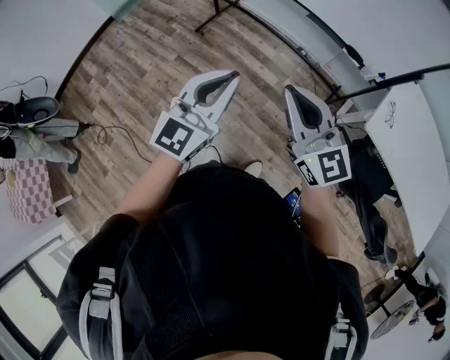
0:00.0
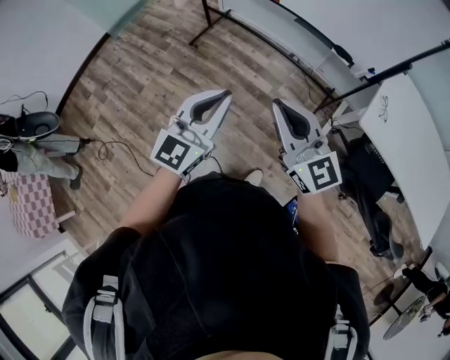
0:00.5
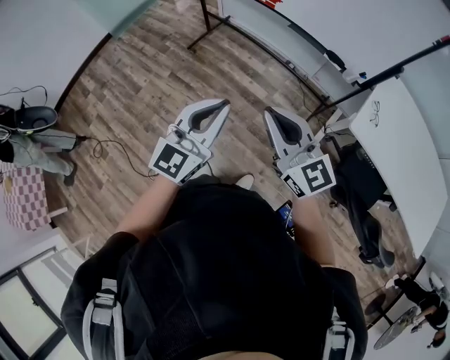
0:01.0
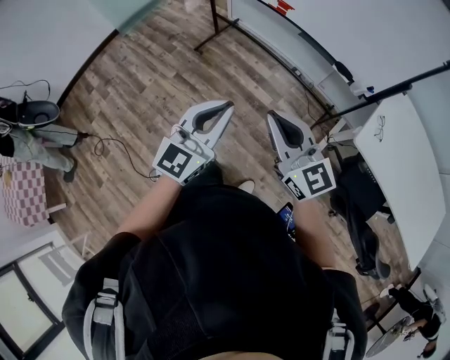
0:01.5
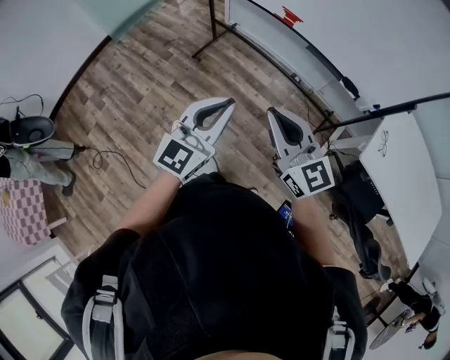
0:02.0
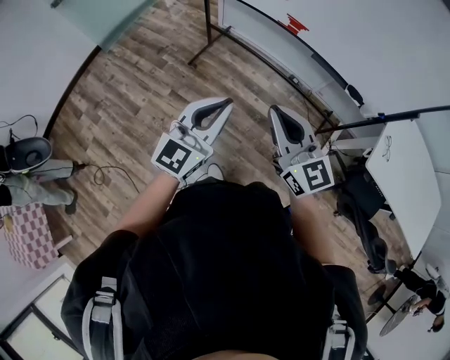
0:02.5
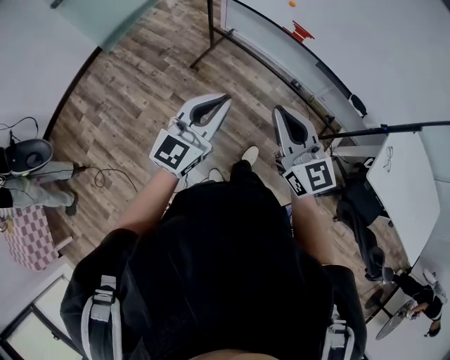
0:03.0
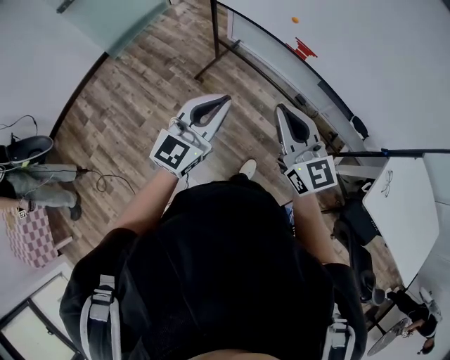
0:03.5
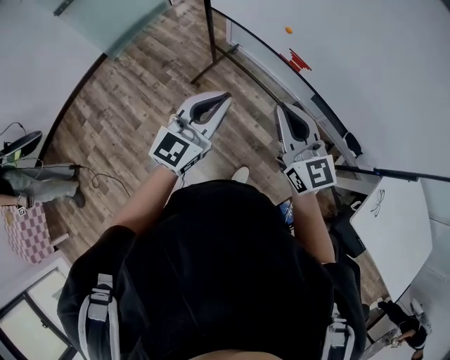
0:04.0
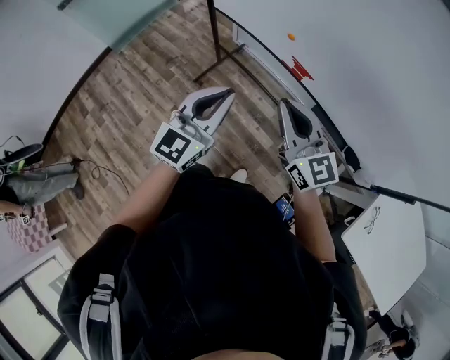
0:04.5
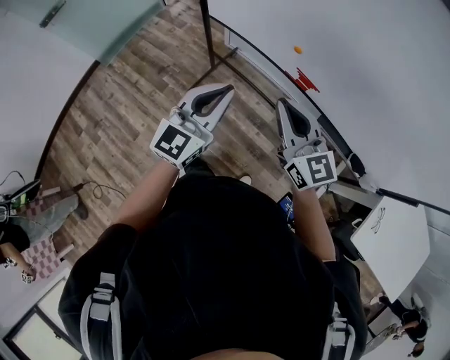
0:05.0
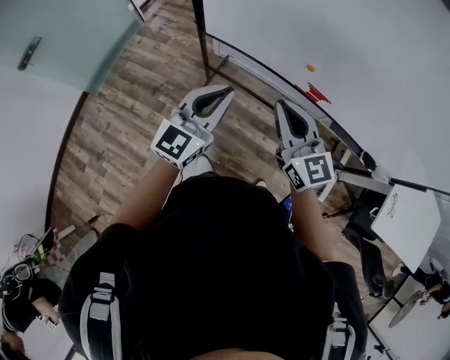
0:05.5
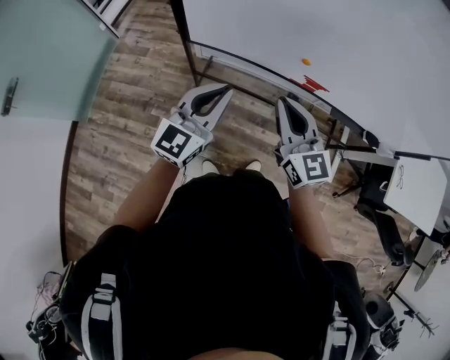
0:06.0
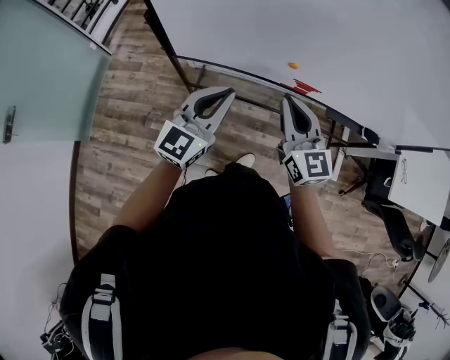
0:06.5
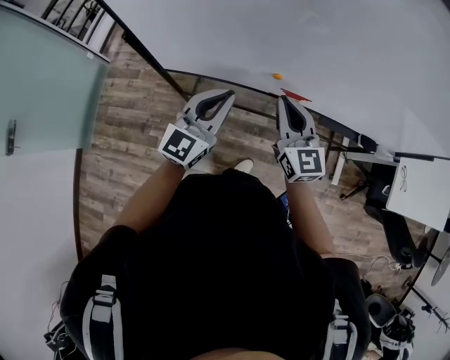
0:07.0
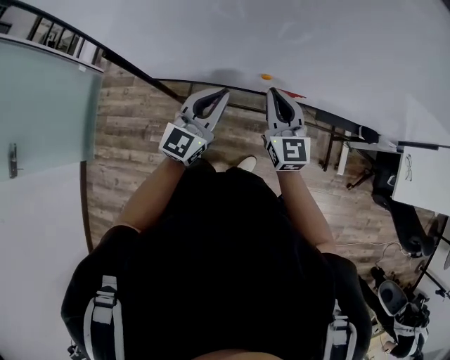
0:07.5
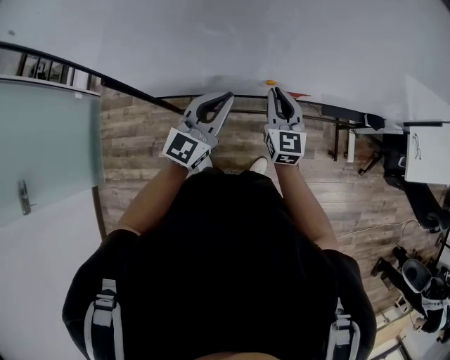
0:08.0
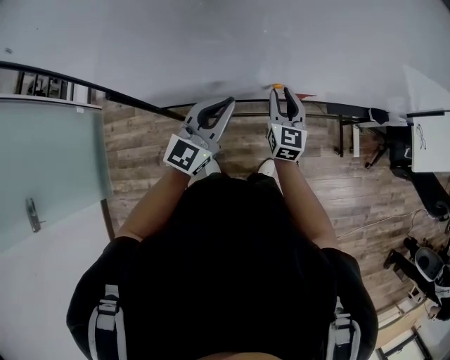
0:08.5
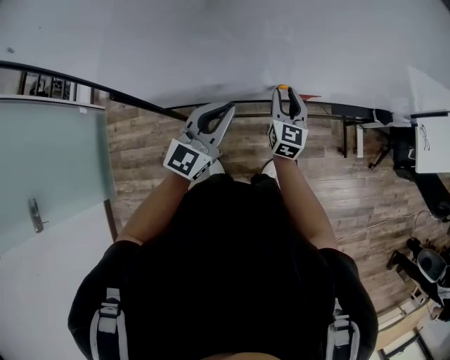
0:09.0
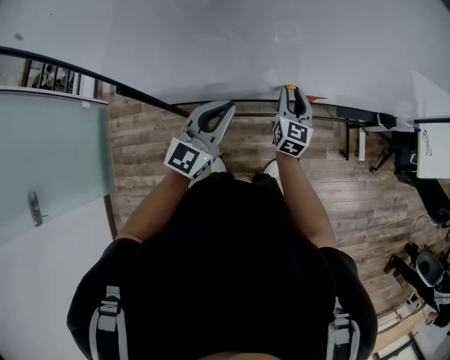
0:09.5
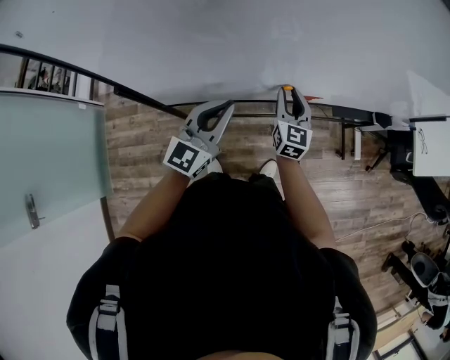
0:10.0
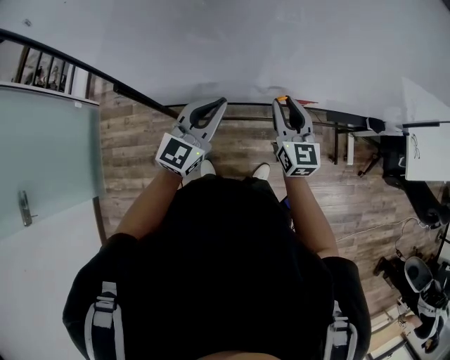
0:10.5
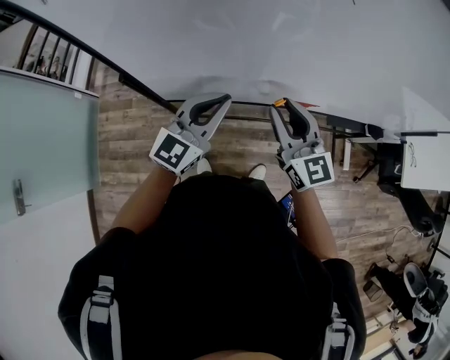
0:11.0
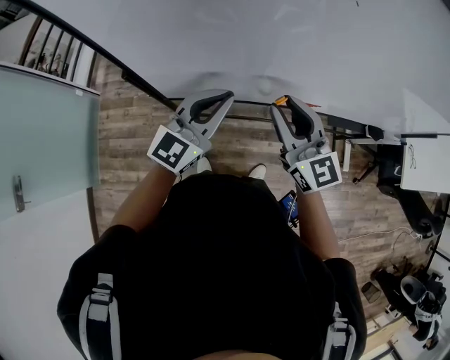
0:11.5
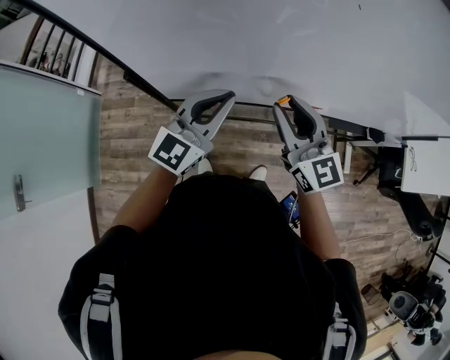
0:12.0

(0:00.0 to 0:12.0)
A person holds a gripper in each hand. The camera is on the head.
0:00.0 - 0:02.0: Both grippers travel together forward and to the left, about 10 cm.
0:02.0 - 0:04.0: Both grippers move forward, some 30 cm.
0:04.0 - 0:06.0: The right gripper ends up some 30 cm from where it was, and changes its angle by approximately 30 degrees; the left gripper shifts by some 35 cm, and turns by approximately 20 degrees.
0:06.0 - 0:08.0: The right gripper goes approximately 25 cm forward, downward and to the right, and changes its angle by about 30 degrees; the left gripper travels forward and to the right by some 20 cm.
0:08.0 - 0:10.0: The left gripper changes place by roughly 5 cm.
0:10.0 - 0:12.0: The right gripper is displaced upward and backward by roughly 20 cm, and changes its angle by about 40 degrees. The left gripper goes approximately 5 cm upward.

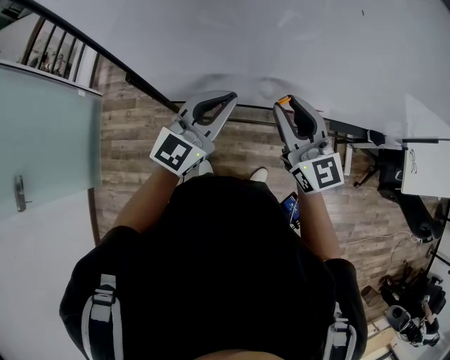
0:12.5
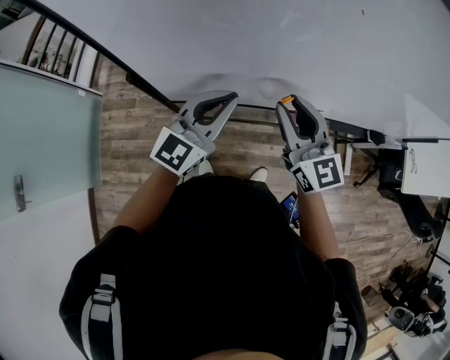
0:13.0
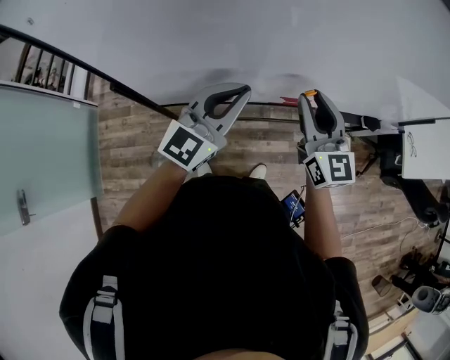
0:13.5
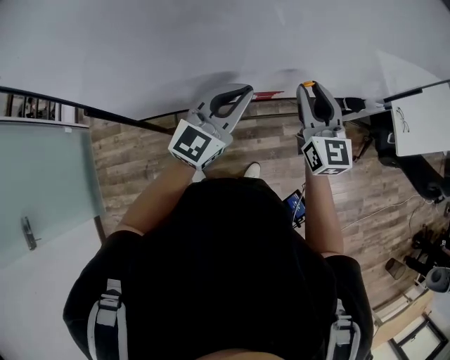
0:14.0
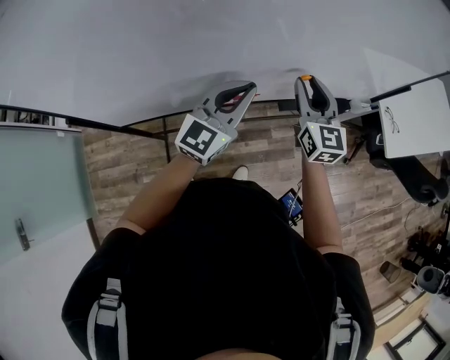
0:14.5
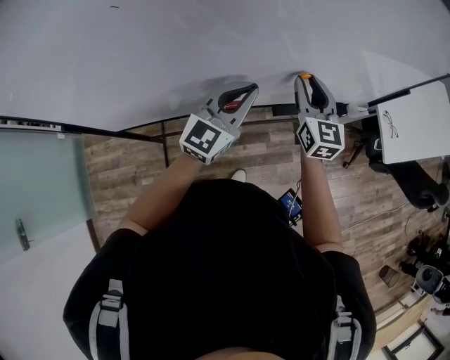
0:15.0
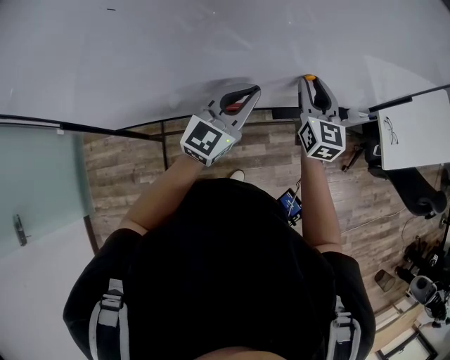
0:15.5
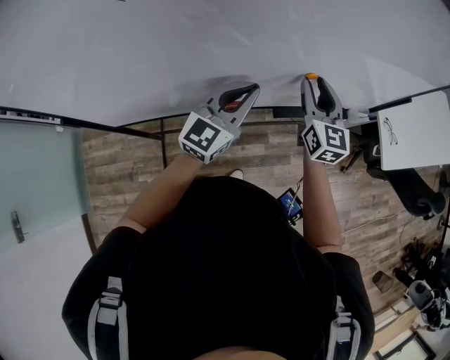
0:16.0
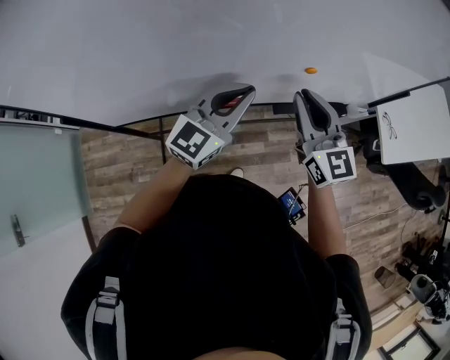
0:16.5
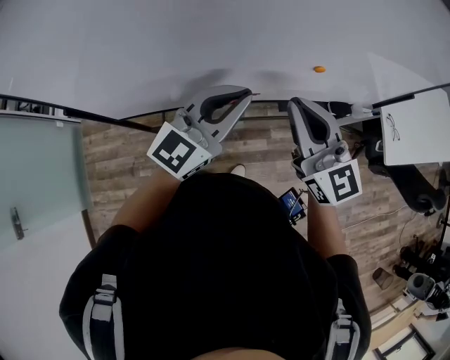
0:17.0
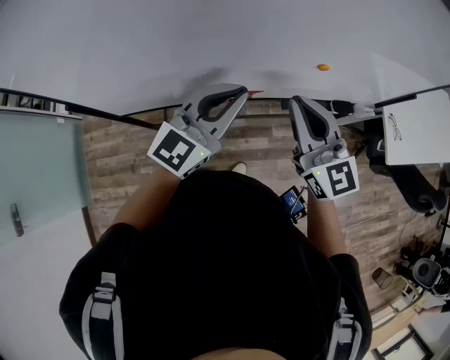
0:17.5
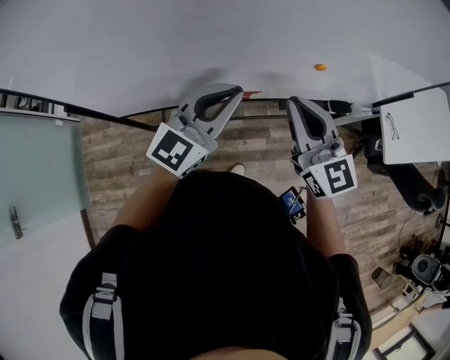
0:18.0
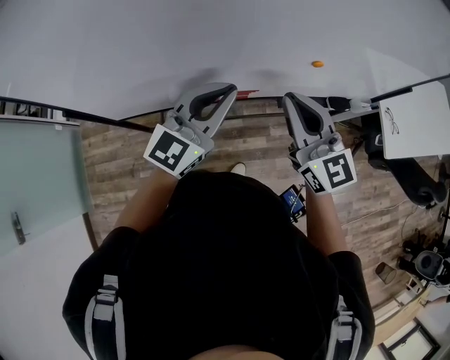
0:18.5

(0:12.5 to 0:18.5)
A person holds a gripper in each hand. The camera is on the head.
0:12.5 - 0:14.5: Both grippers travel together to the right, about 30 cm. The right gripper changes its angle by roughly 30 degrees.
0:14.5 - 0:16.5: The right gripper ends up about 5 cm from where it was.
0:16.5 - 0:18.5: The two grippers go approximately 5 cm to the left.

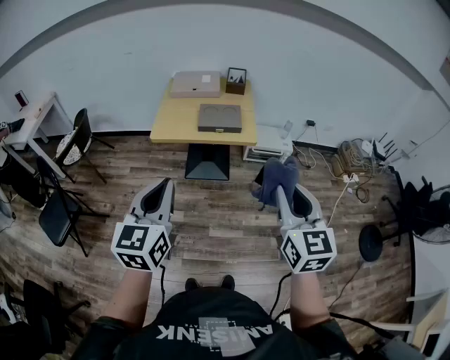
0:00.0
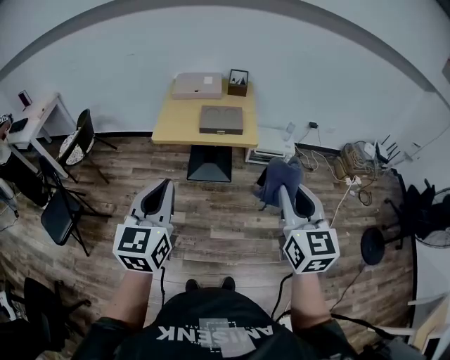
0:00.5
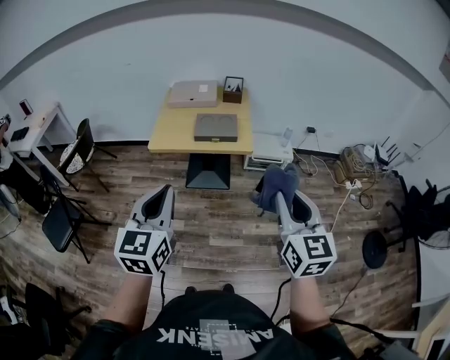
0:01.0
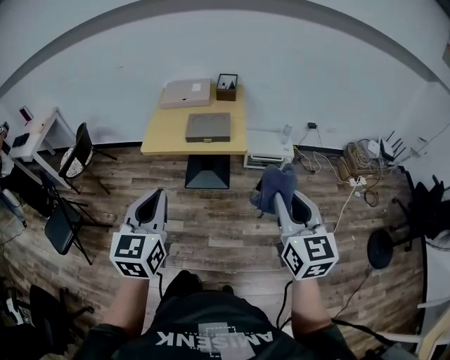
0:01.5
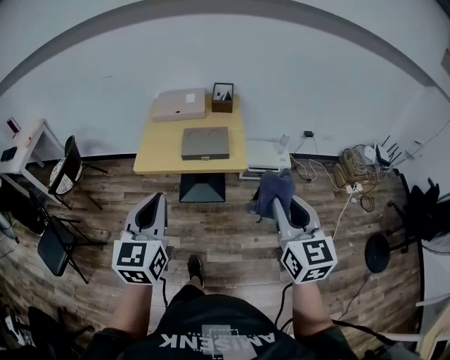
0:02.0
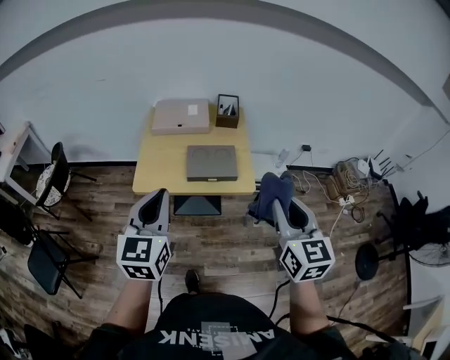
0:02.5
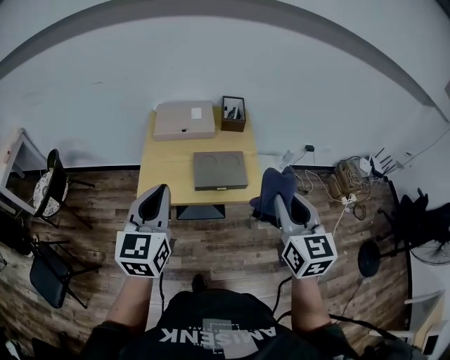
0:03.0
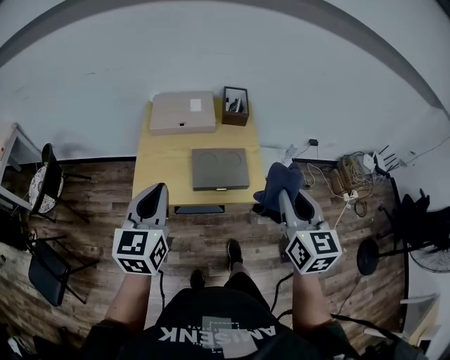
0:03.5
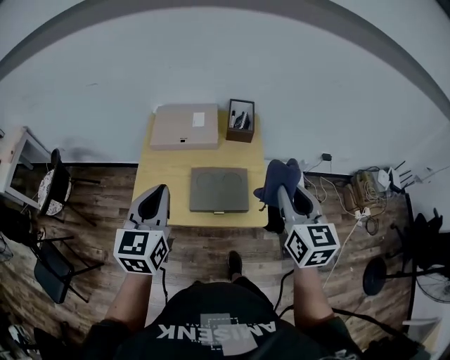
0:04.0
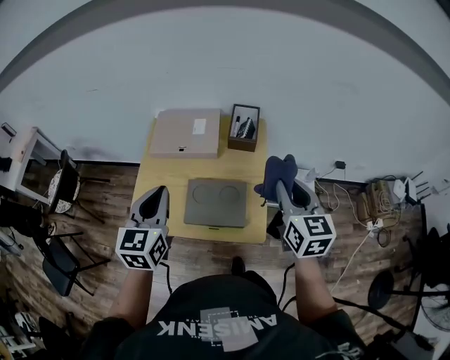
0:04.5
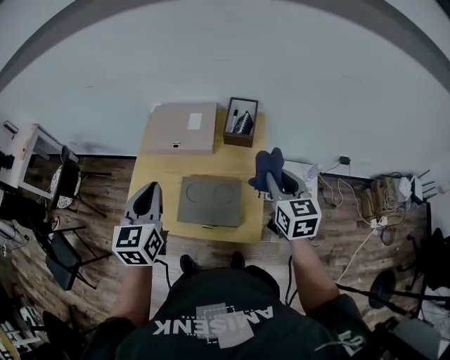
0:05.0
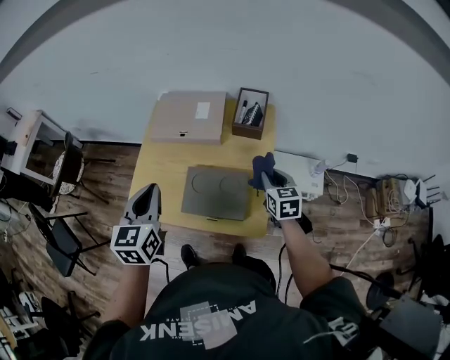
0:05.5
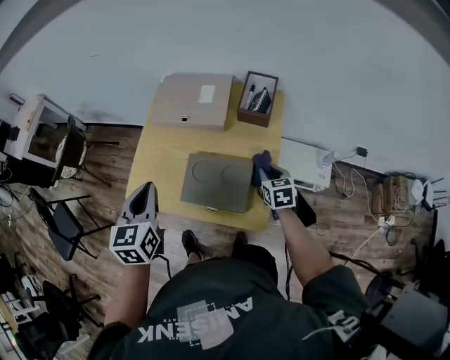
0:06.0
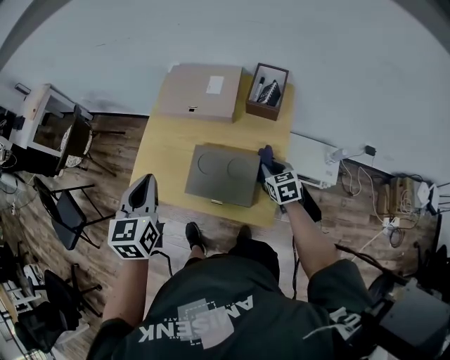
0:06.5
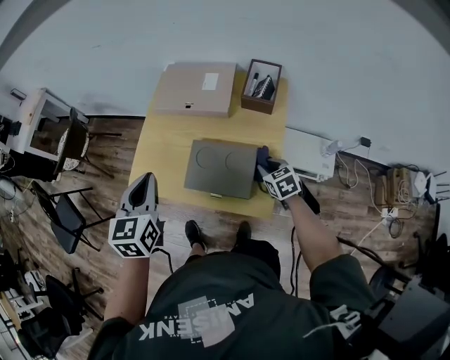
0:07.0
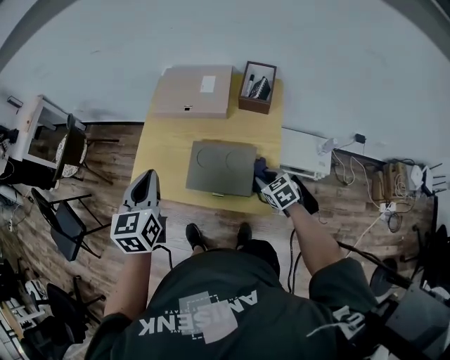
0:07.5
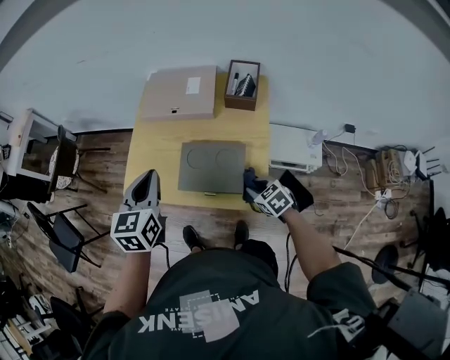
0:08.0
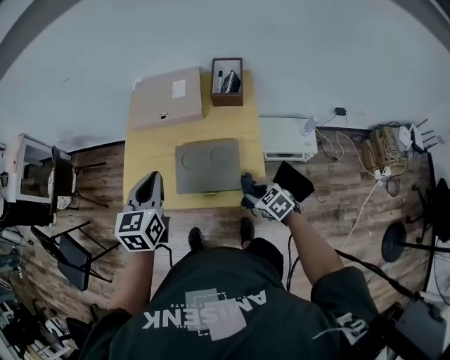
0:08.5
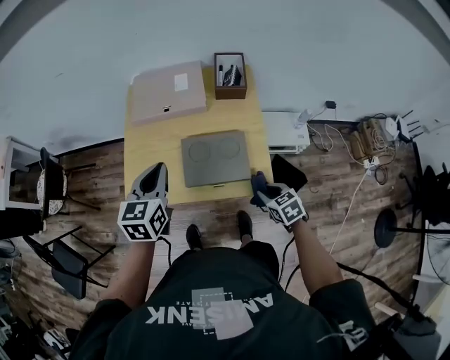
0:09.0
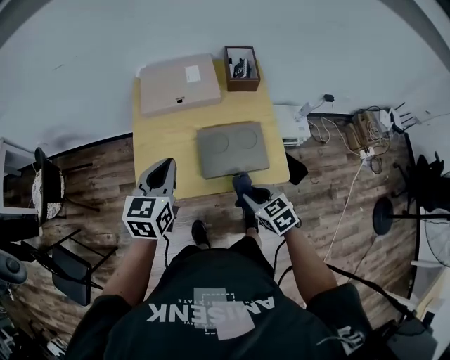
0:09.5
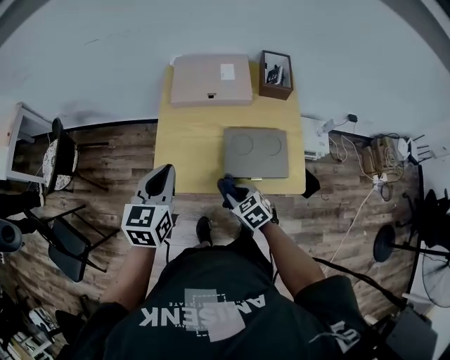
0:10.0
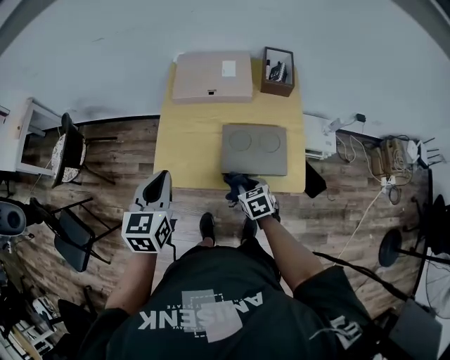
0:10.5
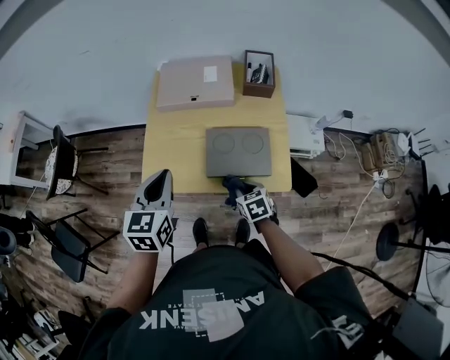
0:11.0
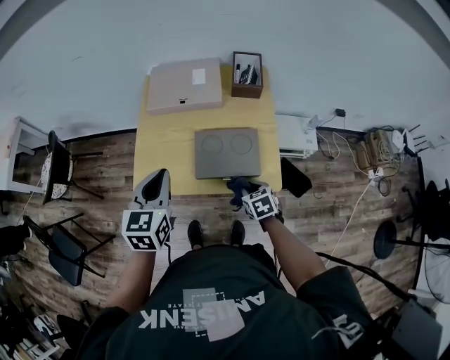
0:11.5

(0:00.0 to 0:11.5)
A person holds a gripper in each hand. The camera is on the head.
0:00.0 - 0:02.0: The two grippers go roughly 15 cm forward and to the right.
0:02.0 - 0:04.0: The two grippers go some 35 cm forward.
0:04.0 - 0:06.0: The right gripper moves downward and forward, approximately 35 cm, and turns by roughly 30 degrees, while the left gripper goes about 10 cm downward and forward, and turns by approximately 20 degrees.
0:06.0 - 0:07.5: The right gripper shifts approximately 10 cm backward and to the left, and turns by approximately 20 degrees.
0:07.5 - 0:09.5: The left gripper shifts by approximately 5 cm, and swivels about 30 degrees. The right gripper is displaced to the left and backward by approximately 20 cm.
0:09.5 - 0:11.5: The left gripper is displaced backward by some 5 cm, and travels to the left and back again, about 5 cm each way, while the right gripper moves to the right and downward, approximately 10 cm.
